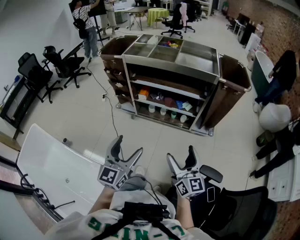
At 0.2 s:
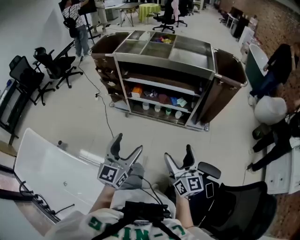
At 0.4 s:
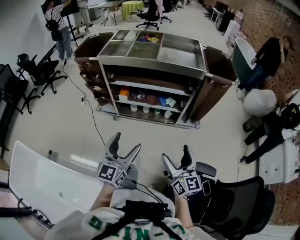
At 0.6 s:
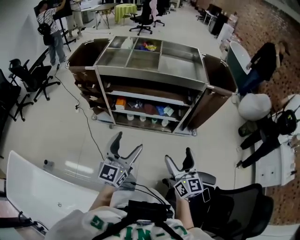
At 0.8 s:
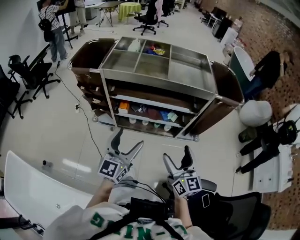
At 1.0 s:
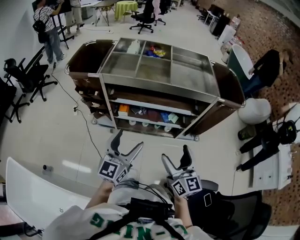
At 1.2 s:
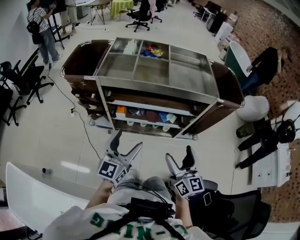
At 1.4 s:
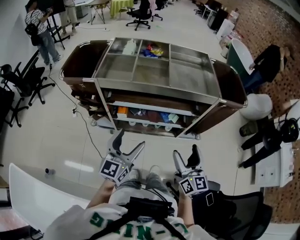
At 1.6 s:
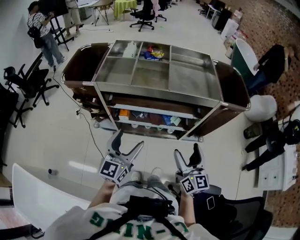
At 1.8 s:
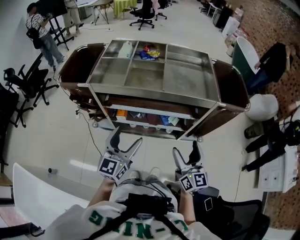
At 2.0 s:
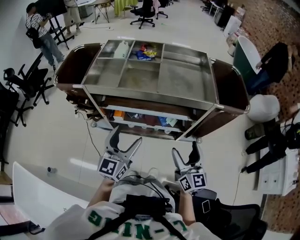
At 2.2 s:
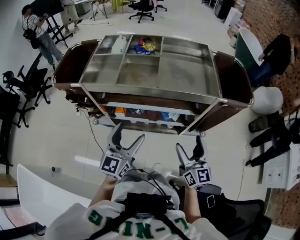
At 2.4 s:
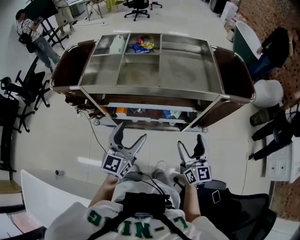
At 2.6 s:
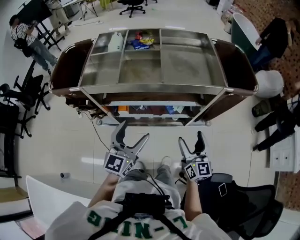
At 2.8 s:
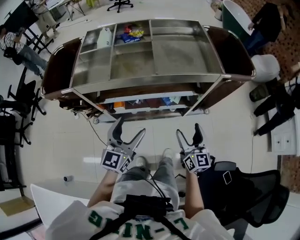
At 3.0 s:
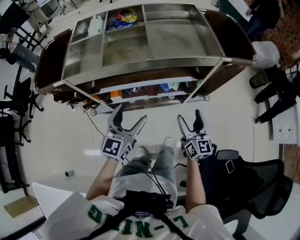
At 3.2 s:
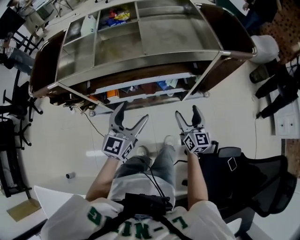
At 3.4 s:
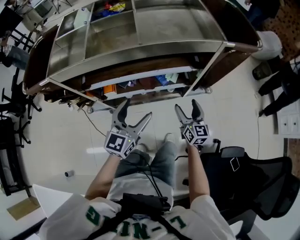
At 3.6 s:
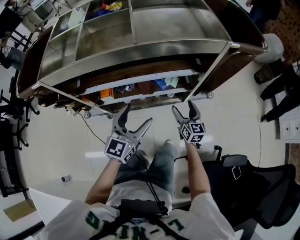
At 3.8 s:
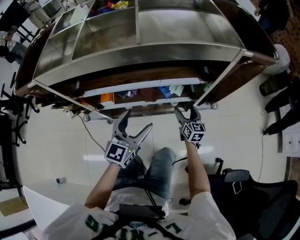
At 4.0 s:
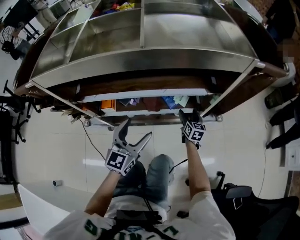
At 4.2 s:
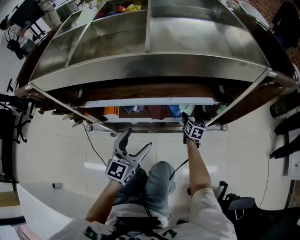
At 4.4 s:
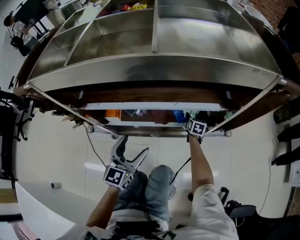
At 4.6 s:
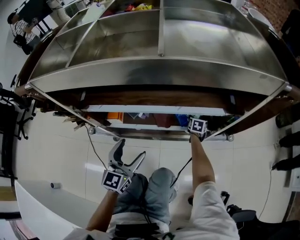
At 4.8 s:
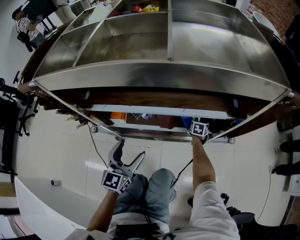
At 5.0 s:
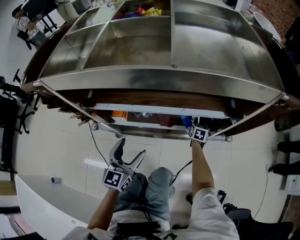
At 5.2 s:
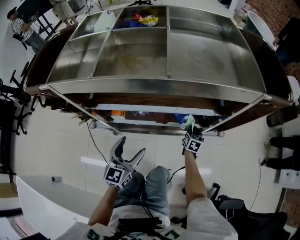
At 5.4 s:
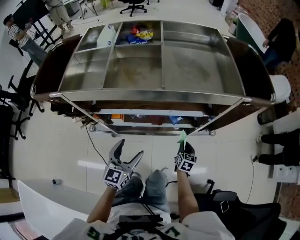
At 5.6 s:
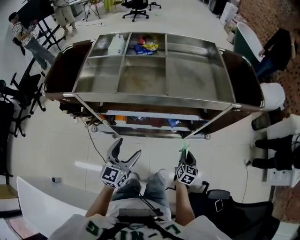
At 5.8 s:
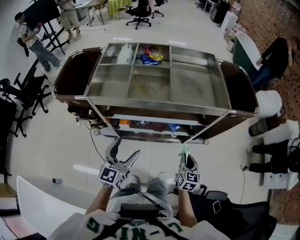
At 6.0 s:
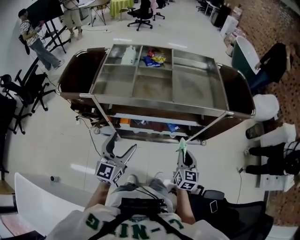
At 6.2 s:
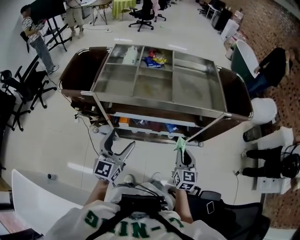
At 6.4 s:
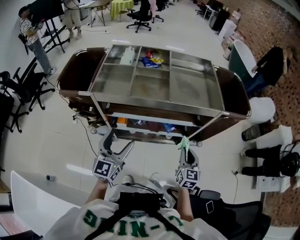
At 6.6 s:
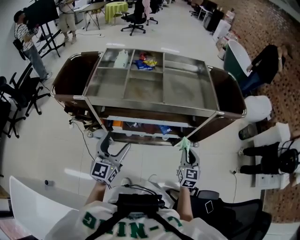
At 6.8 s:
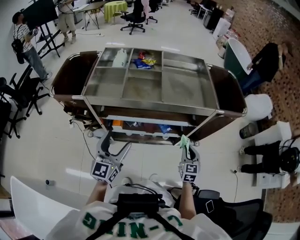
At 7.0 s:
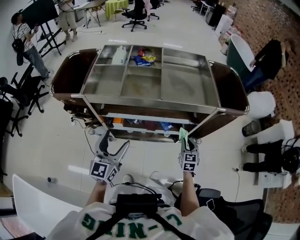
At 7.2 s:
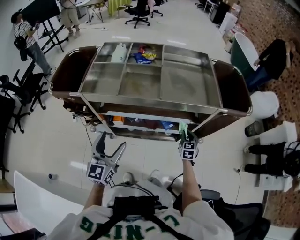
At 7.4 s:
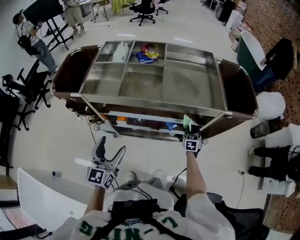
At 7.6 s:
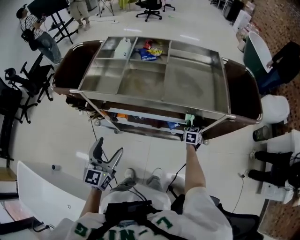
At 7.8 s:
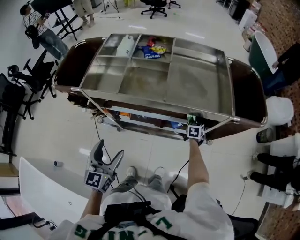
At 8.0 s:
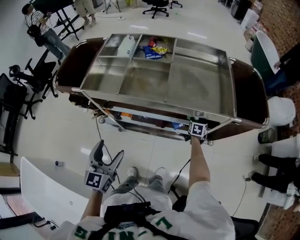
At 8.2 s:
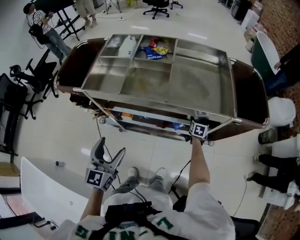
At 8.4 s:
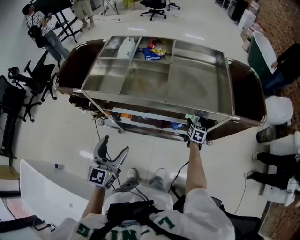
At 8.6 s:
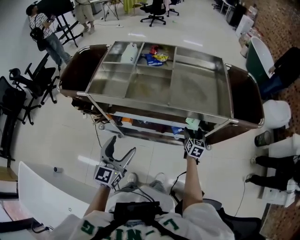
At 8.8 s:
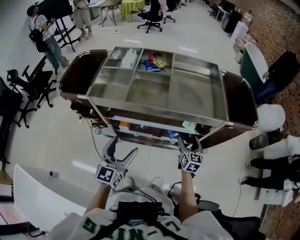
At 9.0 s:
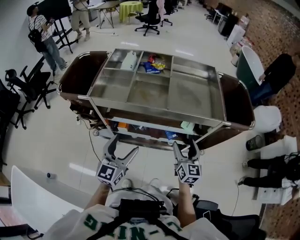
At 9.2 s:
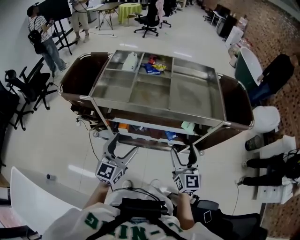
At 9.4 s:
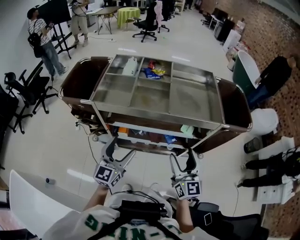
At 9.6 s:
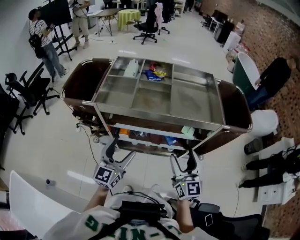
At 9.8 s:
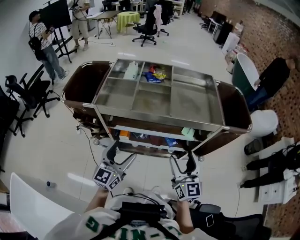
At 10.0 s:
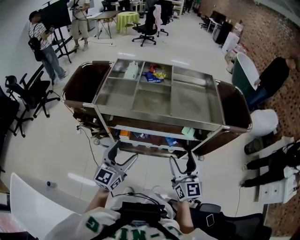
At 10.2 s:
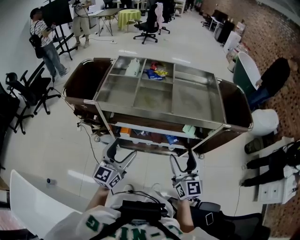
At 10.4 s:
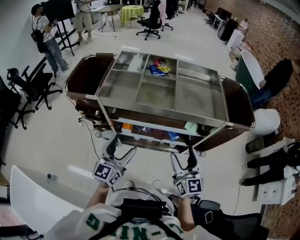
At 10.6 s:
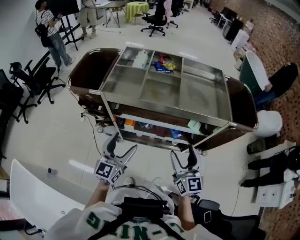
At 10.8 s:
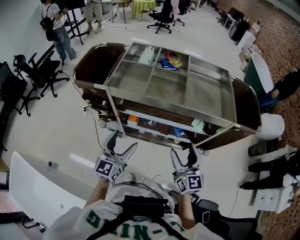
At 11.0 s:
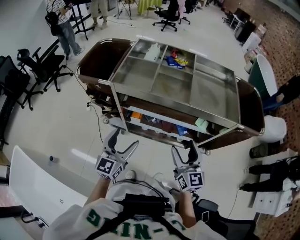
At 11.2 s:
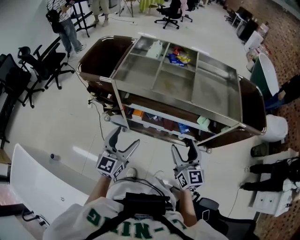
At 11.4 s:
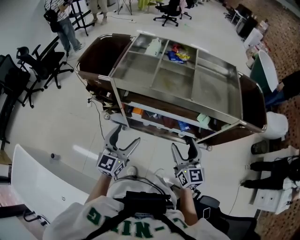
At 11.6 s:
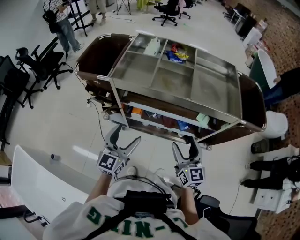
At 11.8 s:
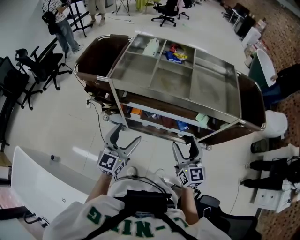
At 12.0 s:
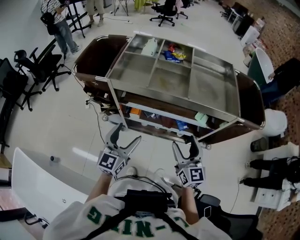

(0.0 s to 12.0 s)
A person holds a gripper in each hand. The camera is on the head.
0.0 s - 1.6 s: The grippers both shift forward by approximately 35 cm.
1.6 s - 3.0 s: The left gripper shifts about 10 cm forward and downward. The right gripper is displaced downward and forward by some 15 cm.
3.0 s - 4.4 s: The right gripper shifts roughly 60 cm downward and forward, and points its fingers some 40 degrees further downward; the left gripper goes some 30 cm downward.
4.4 s - 6.0 s: The right gripper moves upward and backward, some 60 cm, changes its angle by about 20 degrees, and closes up, while the left gripper is displaced upward by approximately 35 cm.
6.0 s - 7.6 s: The right gripper travels forward and downward by roughly 30 cm, and rotates about 20 degrees.
7.6 s - 9.0 s: The right gripper is displaced upward, backward and to the left by approximately 30 cm, angles its fingers upward, by roughly 30 degrees, and opens up.
9.0 s - 10.4 s: The right gripper travels upward, backward and to the left by approximately 15 cm. Meanwhile the left gripper shifts by about 5 cm.
10.4 s - 12.0 s: The right gripper shifts by roughly 5 cm.

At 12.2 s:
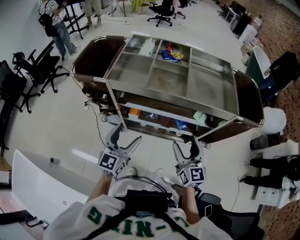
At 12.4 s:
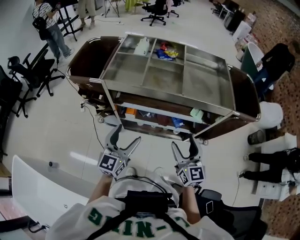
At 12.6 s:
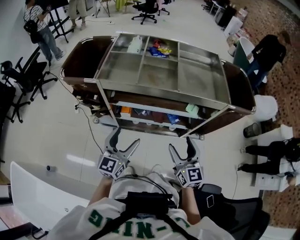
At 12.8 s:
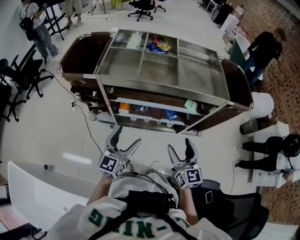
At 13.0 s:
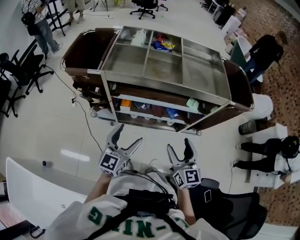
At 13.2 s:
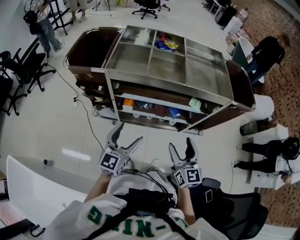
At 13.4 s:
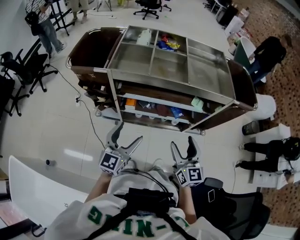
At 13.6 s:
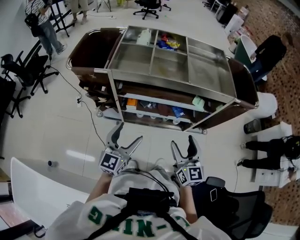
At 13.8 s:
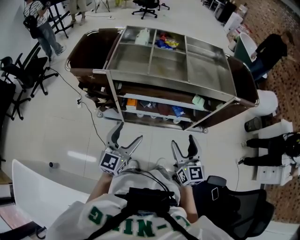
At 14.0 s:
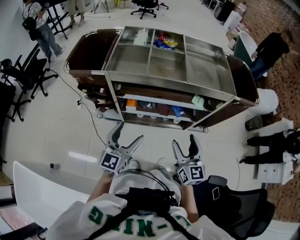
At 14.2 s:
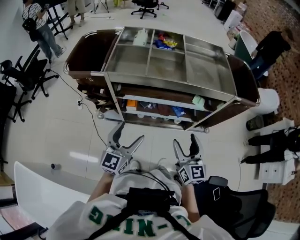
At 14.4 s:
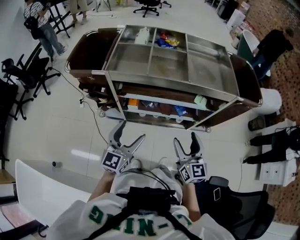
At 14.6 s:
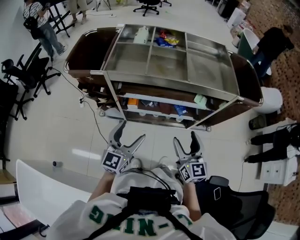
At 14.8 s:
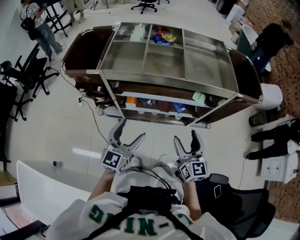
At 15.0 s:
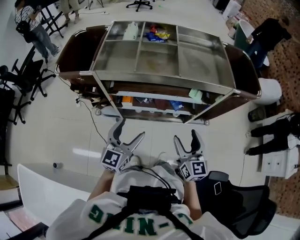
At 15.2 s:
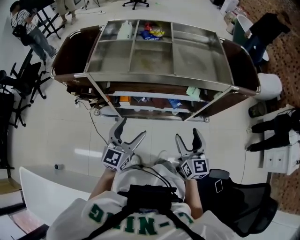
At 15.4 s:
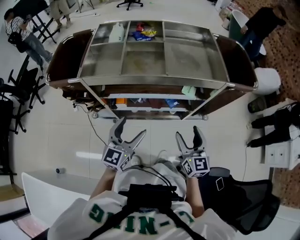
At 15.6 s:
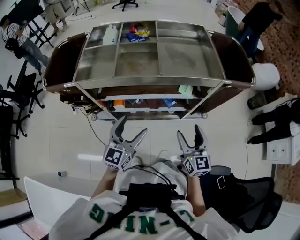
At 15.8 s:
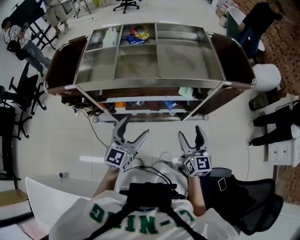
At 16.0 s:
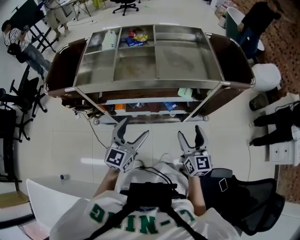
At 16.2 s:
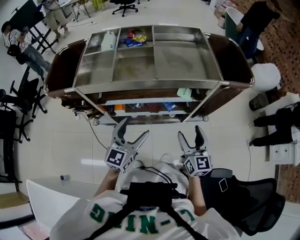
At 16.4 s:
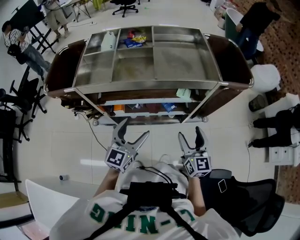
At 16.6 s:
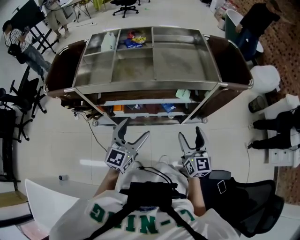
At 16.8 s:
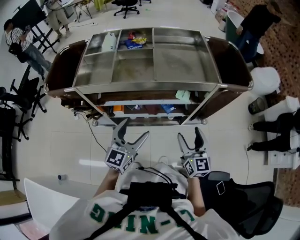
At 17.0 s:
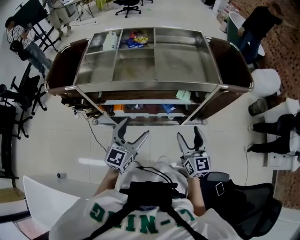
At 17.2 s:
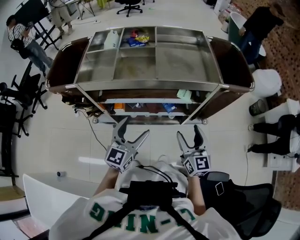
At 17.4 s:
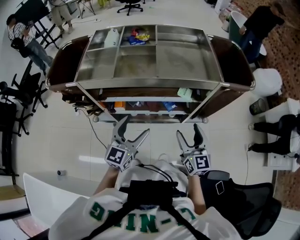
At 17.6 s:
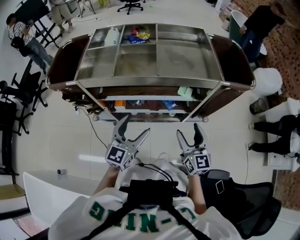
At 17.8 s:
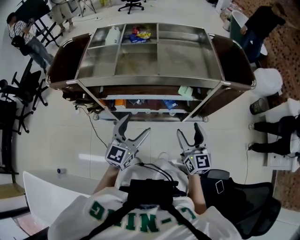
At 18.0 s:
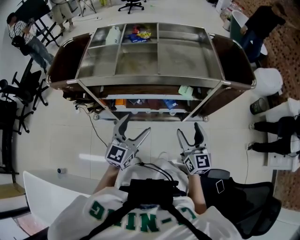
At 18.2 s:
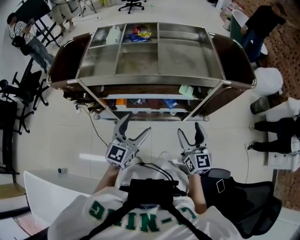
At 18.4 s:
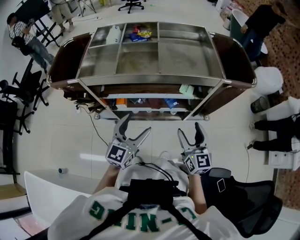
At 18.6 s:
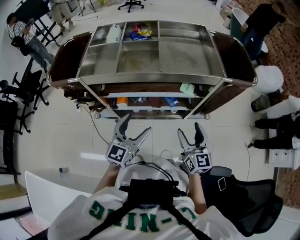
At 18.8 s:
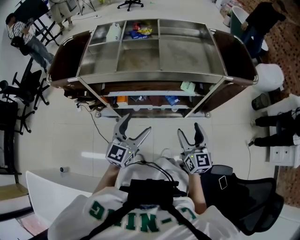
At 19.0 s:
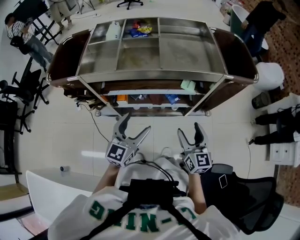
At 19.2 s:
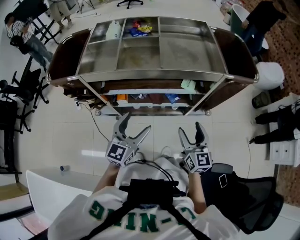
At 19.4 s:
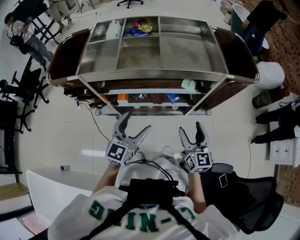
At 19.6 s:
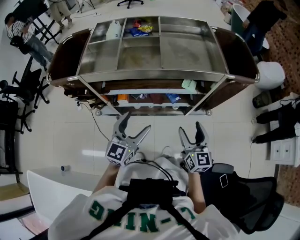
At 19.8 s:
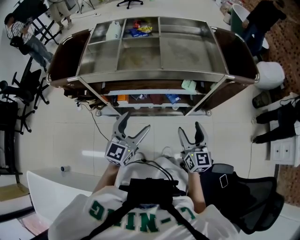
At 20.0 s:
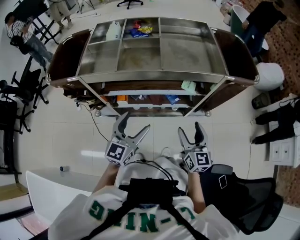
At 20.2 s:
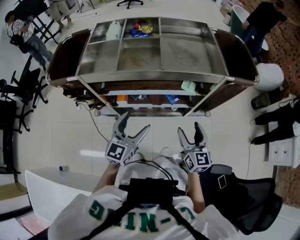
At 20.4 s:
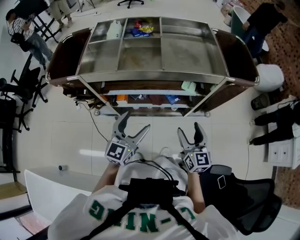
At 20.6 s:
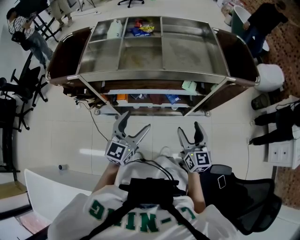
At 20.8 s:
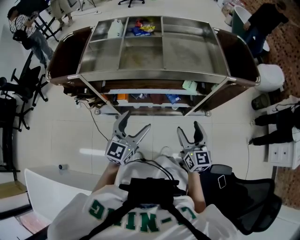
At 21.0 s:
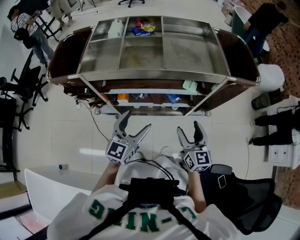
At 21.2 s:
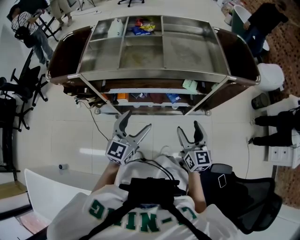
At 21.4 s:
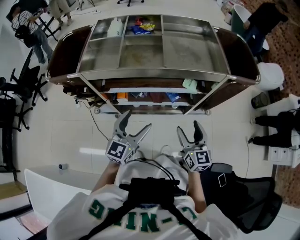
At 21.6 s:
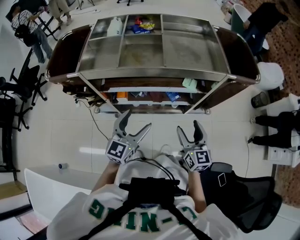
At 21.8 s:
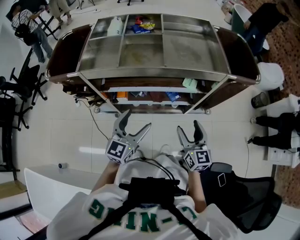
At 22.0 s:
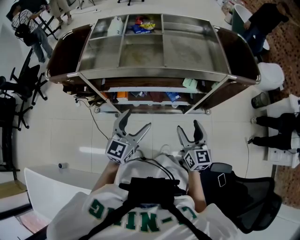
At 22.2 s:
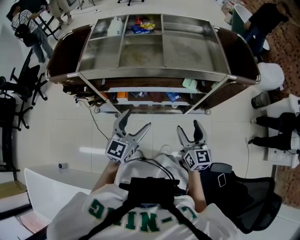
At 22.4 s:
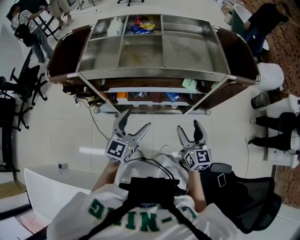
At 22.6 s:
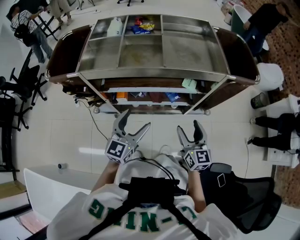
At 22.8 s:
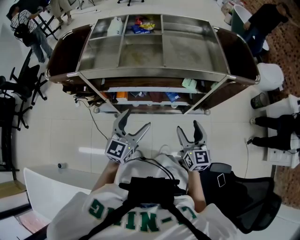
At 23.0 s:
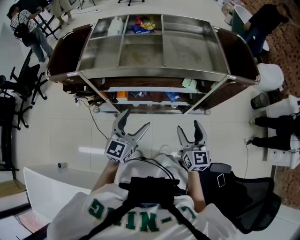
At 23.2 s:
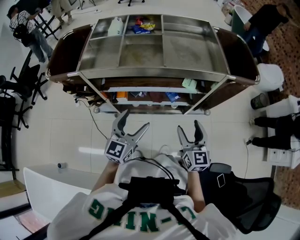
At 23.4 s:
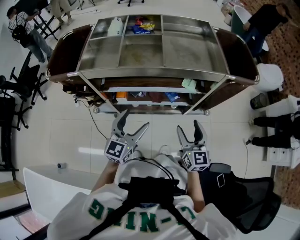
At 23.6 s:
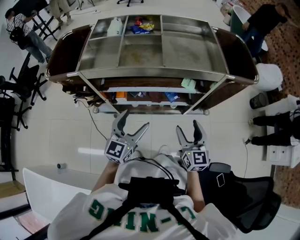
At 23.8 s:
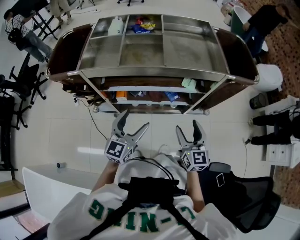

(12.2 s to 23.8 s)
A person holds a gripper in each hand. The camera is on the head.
12.2 s - 13.6 s: The grippers both shift backward by some 5 cm.
13.6 s - 15.0 s: Both grippers move to the right, about 5 cm.
15.0 s - 16.6 s: The right gripper goes roughly 10 cm to the right, while the left gripper is displaced to the right and forward by some 10 cm.
16.6 s - 21.0 s: The grippers make only small movements.
21.0 s - 22.4 s: Neither gripper changes place.
22.4 s - 23.8 s: The grippers move only a little.
